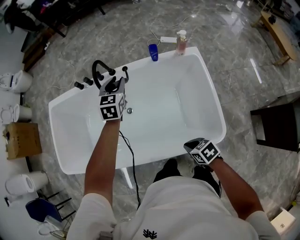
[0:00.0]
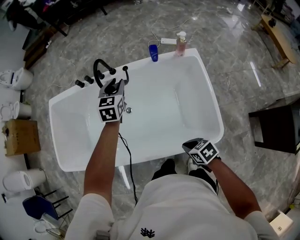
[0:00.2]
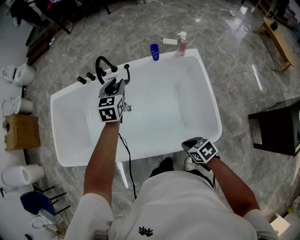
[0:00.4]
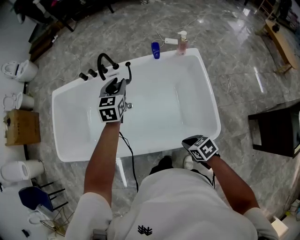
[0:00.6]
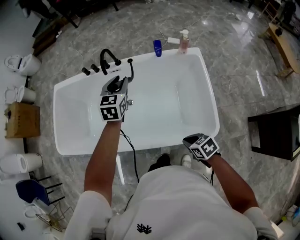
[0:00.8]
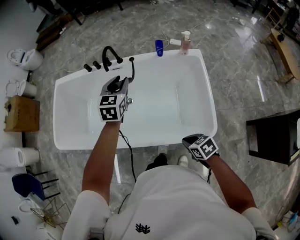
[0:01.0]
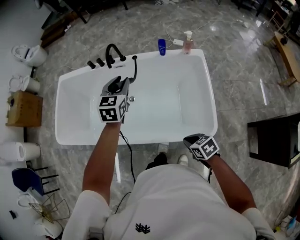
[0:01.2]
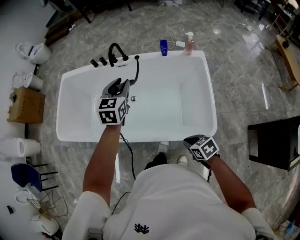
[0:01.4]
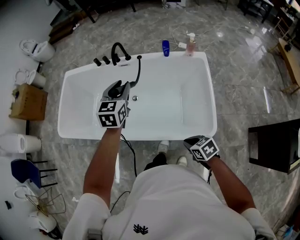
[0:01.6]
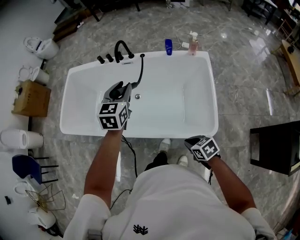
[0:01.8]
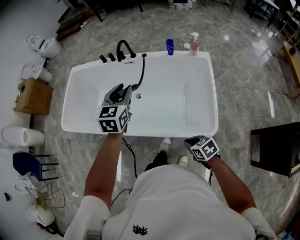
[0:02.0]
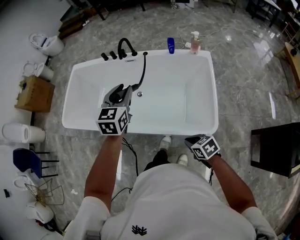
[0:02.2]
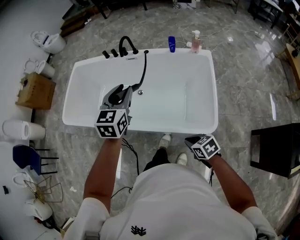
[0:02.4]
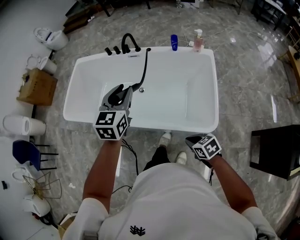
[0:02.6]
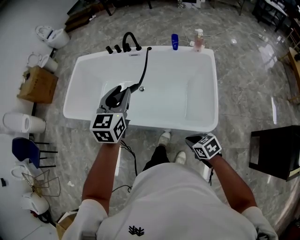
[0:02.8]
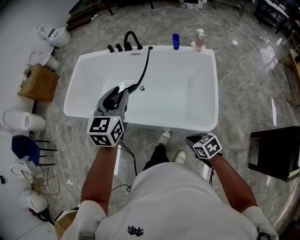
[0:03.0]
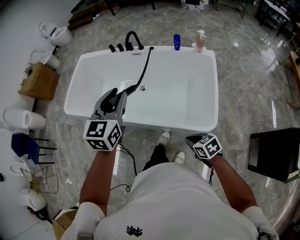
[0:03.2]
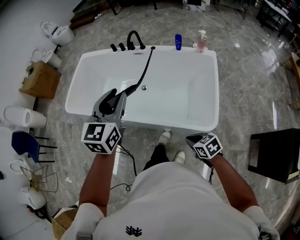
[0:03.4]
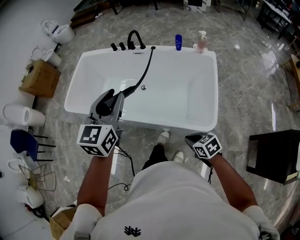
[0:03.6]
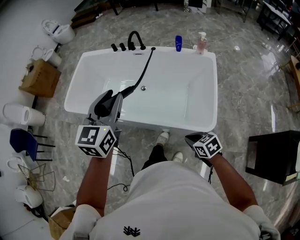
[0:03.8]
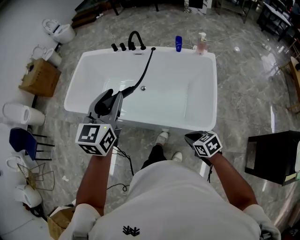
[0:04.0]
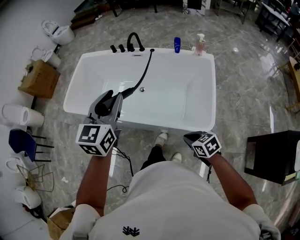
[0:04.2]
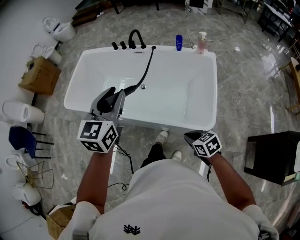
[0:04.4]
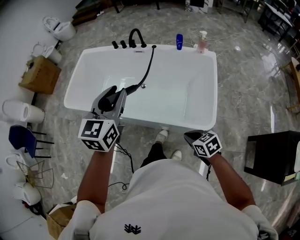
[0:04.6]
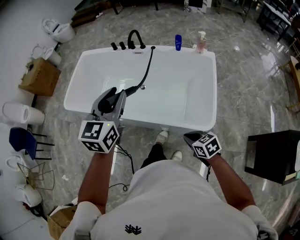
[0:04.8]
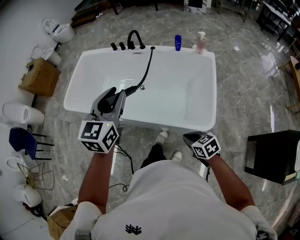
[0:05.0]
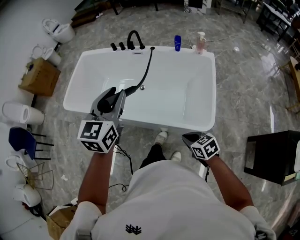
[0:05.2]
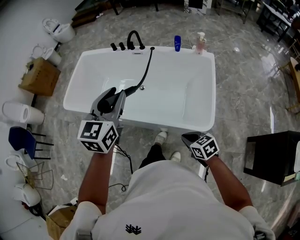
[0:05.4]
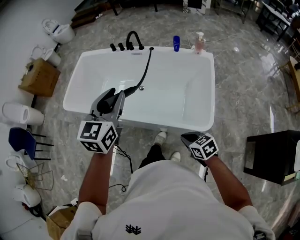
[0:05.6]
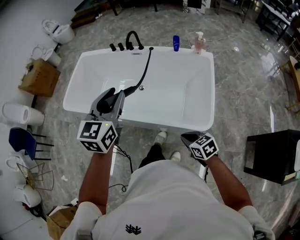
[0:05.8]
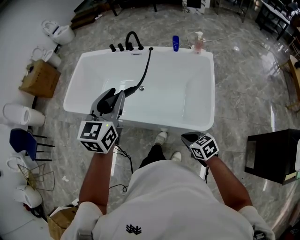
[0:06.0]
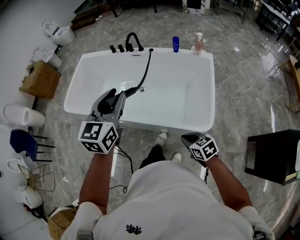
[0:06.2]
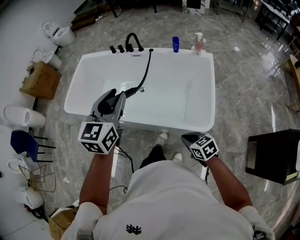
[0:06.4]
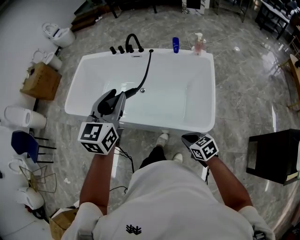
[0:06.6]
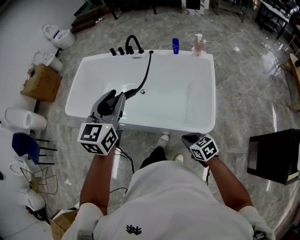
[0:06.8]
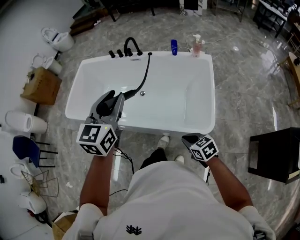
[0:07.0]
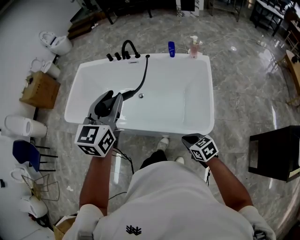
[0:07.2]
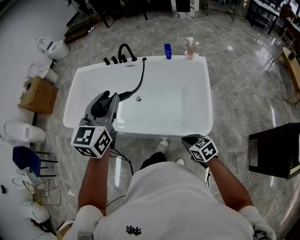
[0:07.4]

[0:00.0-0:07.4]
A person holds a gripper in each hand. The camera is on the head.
0:00.0 to 0:01.4: The right gripper moves backward, roughly 10 cm, while the left gripper moves backward, upward and to the left, some 20 cm.
0:01.4 to 0:03.0: The right gripper heads backward, covering roughly 10 cm. The left gripper moves backward, to the left and upward, roughly 25 cm.
0:03.0 to 0:04.4: The left gripper moves some 5 cm.
0:04.4 to 0:06.0: The grippers stay close to where they were, moving slightly.
0:06.0 to 0:07.4: The left gripper changes place by about 5 cm.

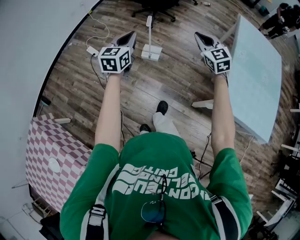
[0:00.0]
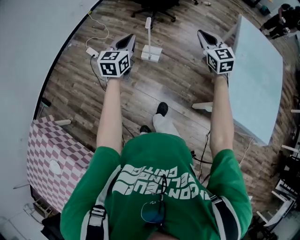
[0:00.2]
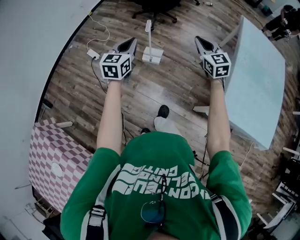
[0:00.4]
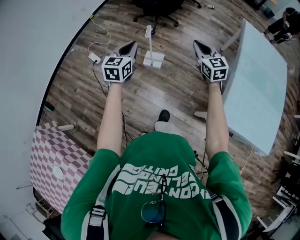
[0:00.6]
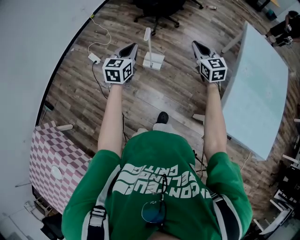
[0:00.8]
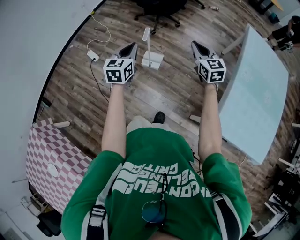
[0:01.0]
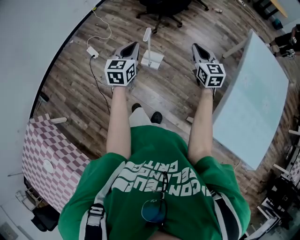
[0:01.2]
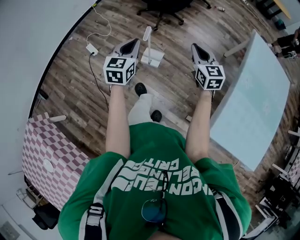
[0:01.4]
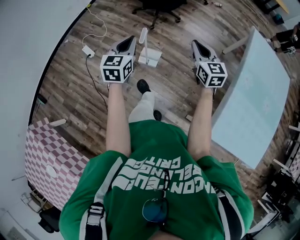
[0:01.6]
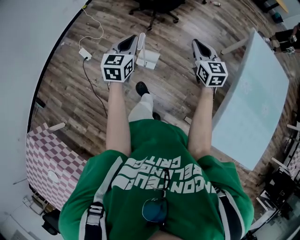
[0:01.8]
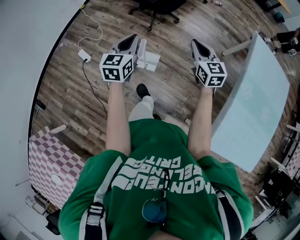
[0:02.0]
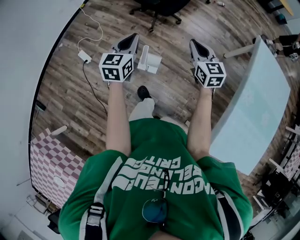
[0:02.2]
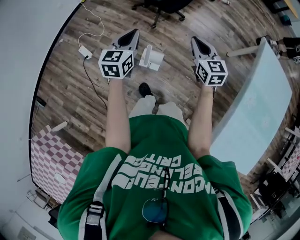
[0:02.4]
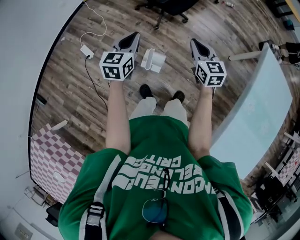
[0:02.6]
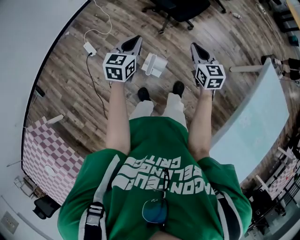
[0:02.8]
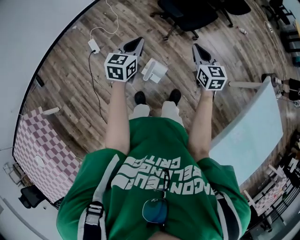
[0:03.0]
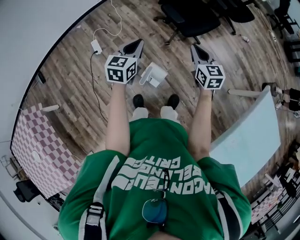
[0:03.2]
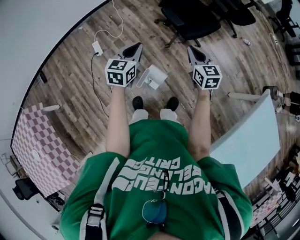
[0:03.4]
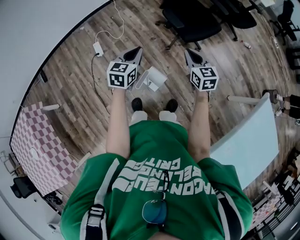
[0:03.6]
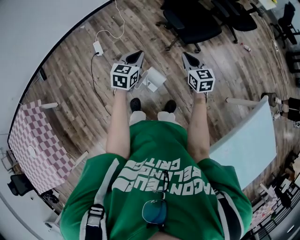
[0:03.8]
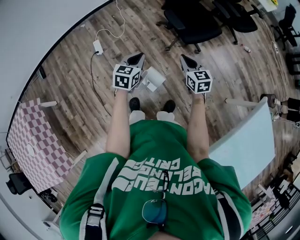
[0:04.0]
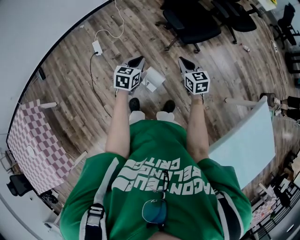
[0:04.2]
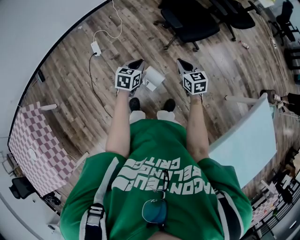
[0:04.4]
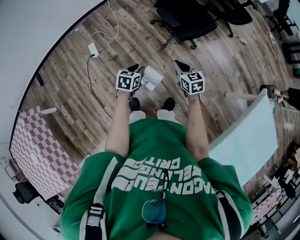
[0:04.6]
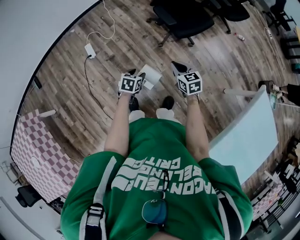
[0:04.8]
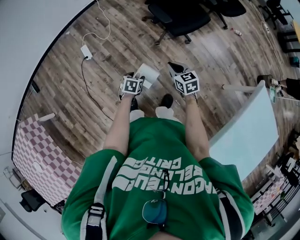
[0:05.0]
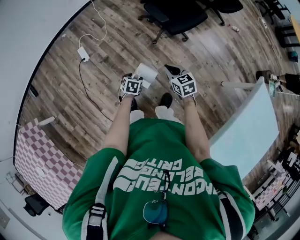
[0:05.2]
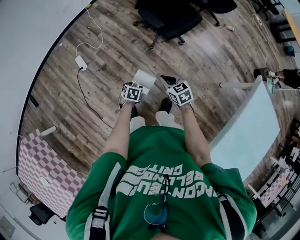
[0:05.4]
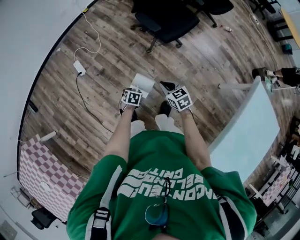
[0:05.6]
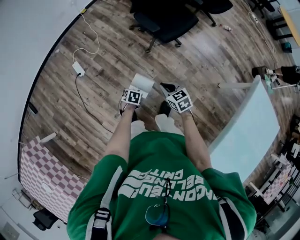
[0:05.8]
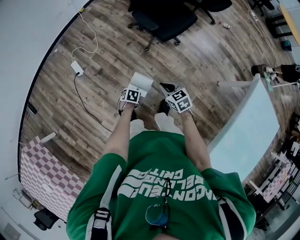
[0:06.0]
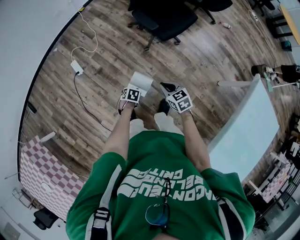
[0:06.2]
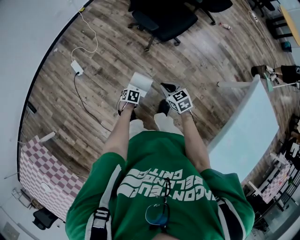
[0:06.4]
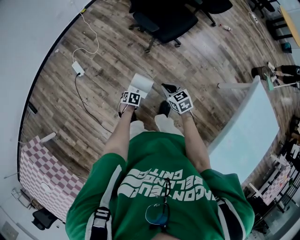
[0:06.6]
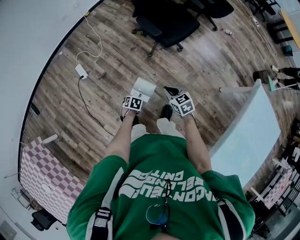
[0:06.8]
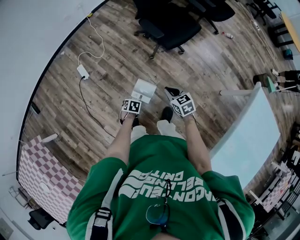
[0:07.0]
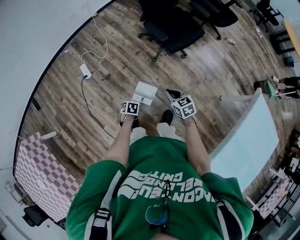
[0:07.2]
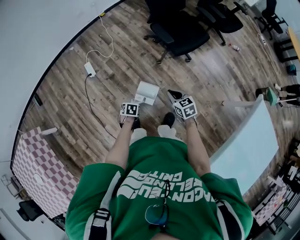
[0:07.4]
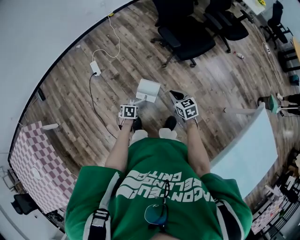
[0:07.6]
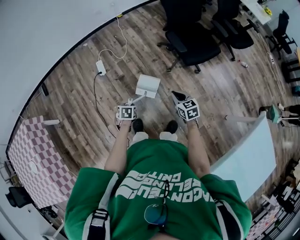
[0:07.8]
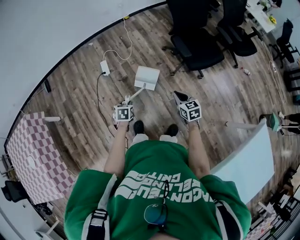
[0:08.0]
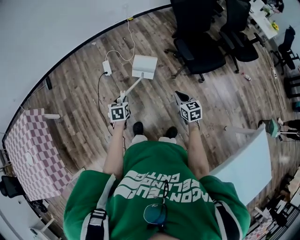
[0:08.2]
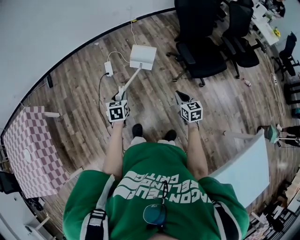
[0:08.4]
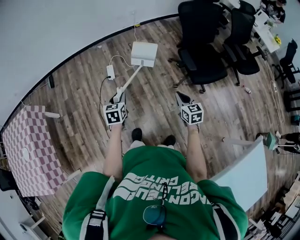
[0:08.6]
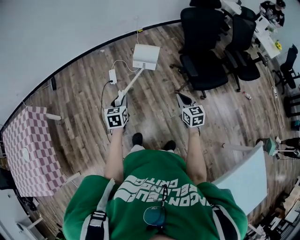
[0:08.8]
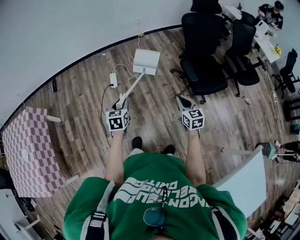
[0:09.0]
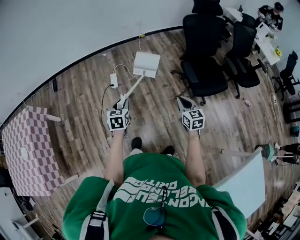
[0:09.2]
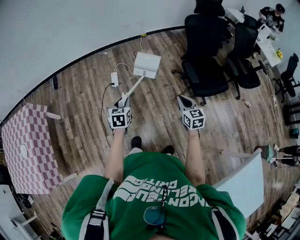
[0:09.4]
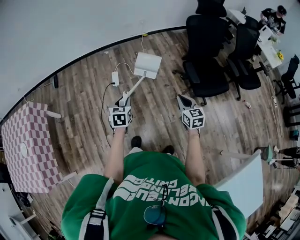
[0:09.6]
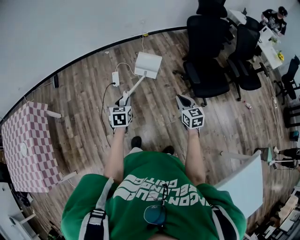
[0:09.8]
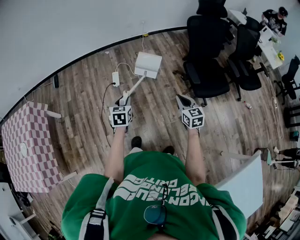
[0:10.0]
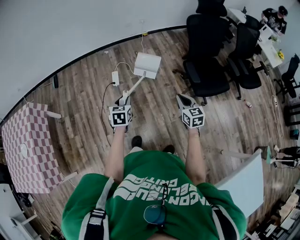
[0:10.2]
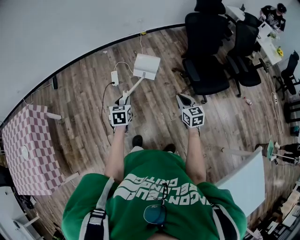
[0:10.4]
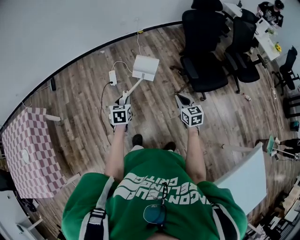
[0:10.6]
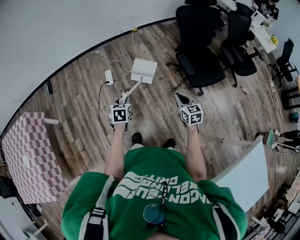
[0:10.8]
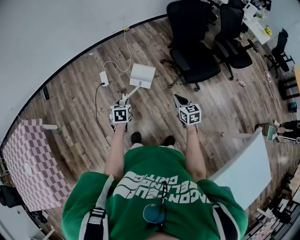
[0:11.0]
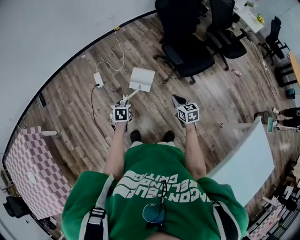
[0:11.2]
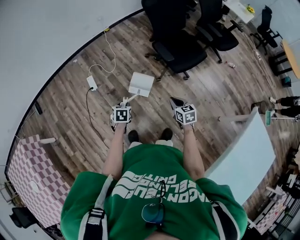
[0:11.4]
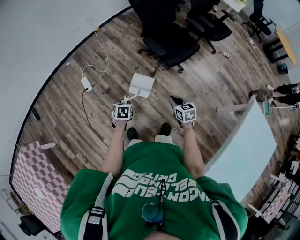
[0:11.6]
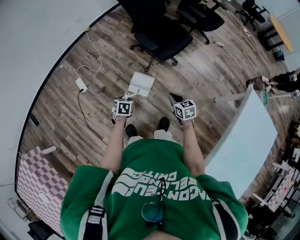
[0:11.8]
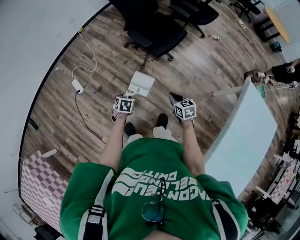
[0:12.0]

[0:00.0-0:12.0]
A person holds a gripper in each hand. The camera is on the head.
0:00.0 to 0:01.6: The two grippers go approximately 20 cm forward.
0:01.6 to 0:03.0: Both grippers travel together forward, roughly 25 cm.
0:03.0 to 0:04.4: Both grippers move downward, about 10 cm.
0:04.4 to 0:06.0: The left gripper travels downward by approximately 25 cm, tips its fingers downward by some 40 degrees, and opens. The right gripper shifts roughly 10 cm downward.
0:06.0 to 0:07.6: The left gripper ends up roughly 15 cm from where it was, and turns by some 20 degrees.
0:07.6 to 0:09.0: The left gripper moves upward and forward, about 25 cm, and points its fingers about 30 degrees further upward; the right gripper moves upward and forward, approximately 15 cm.
0:09.0 to 0:10.4: The grippers move only a little.
0:10.4 to 0:12.0: The right gripper moves some 25 cm, and swivels some 30 degrees. The left gripper shifts by roughly 30 cm, and rotates approximately 50 degrees.

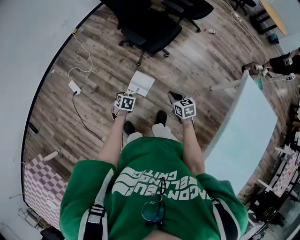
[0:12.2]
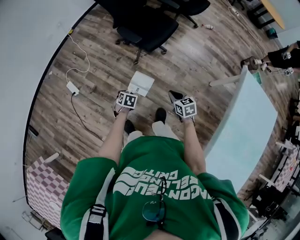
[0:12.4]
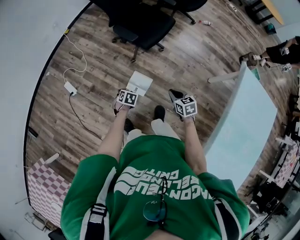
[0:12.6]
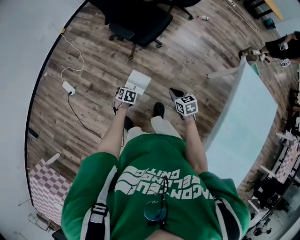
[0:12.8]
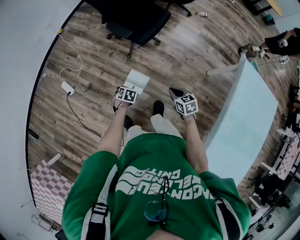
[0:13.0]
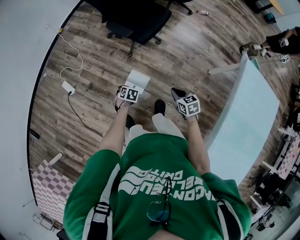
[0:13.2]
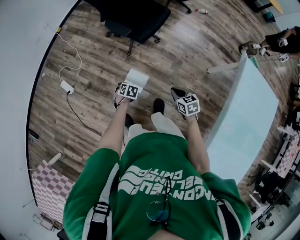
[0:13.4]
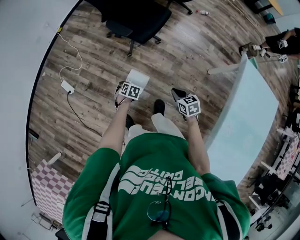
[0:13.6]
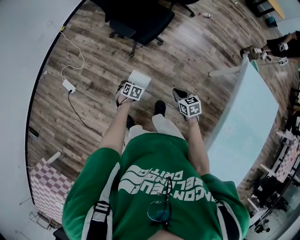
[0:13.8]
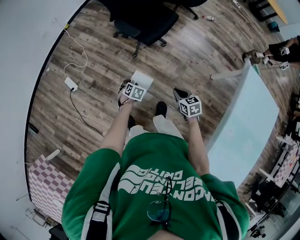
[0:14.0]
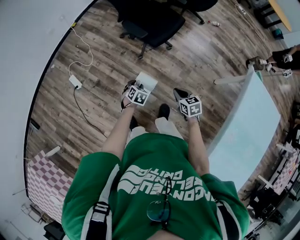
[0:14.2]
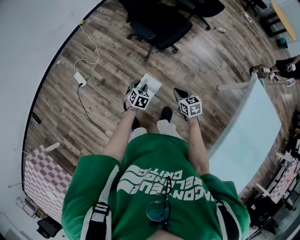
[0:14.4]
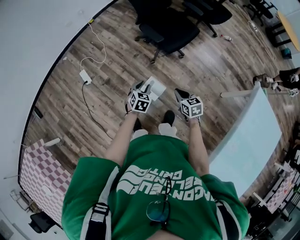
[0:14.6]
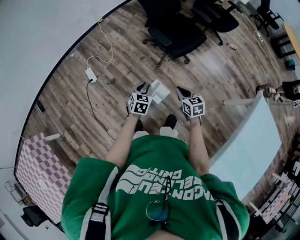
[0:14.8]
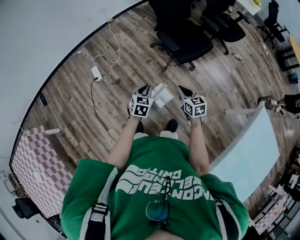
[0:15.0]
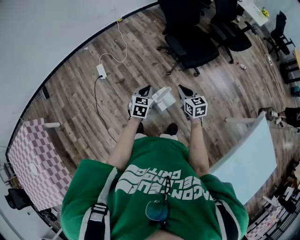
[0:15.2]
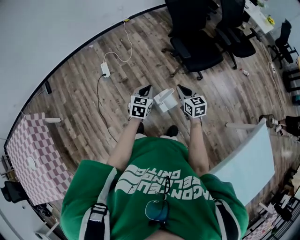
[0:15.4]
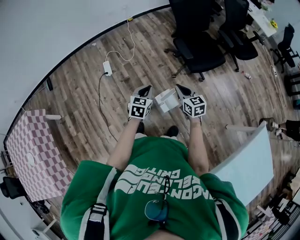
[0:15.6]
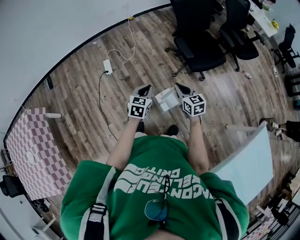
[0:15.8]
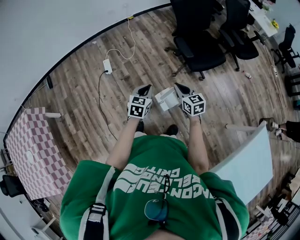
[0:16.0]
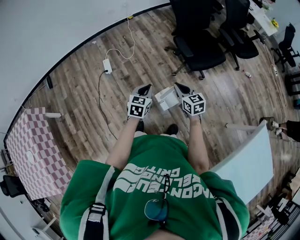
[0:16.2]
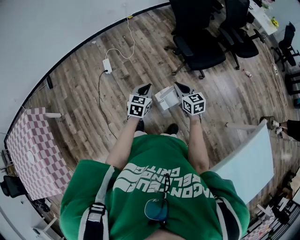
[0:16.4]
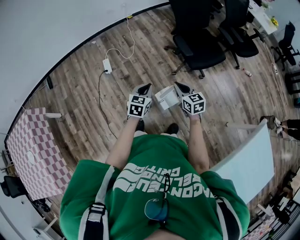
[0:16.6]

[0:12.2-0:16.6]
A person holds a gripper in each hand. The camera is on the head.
0:12.2 to 0:13.6: The right gripper changes place by roughly 5 cm; the left gripper shifts by approximately 10 cm.
0:13.6 to 0:15.2: The left gripper goes some 25 cm upward and to the left, tips its fingers upward by approximately 40 degrees, and closes; the right gripper moves to the left, upward and forward, roughly 25 cm, and changes its angle by approximately 30 degrees.
0:15.2 to 0:16.6: The grippers make only small movements.
